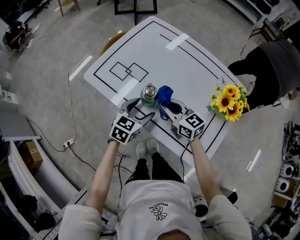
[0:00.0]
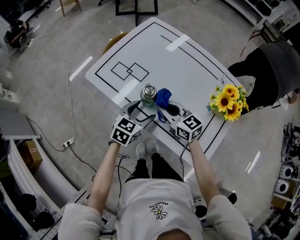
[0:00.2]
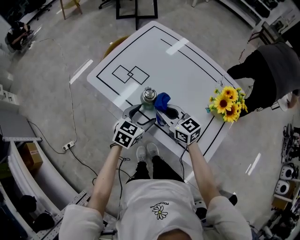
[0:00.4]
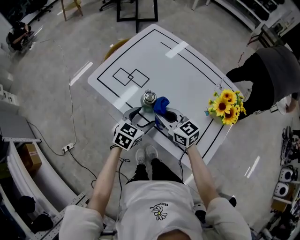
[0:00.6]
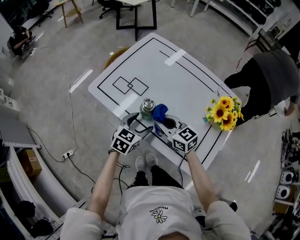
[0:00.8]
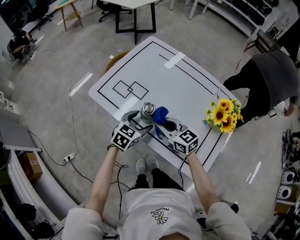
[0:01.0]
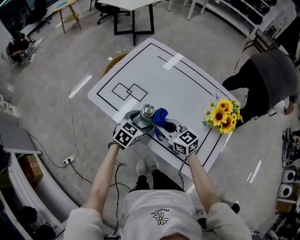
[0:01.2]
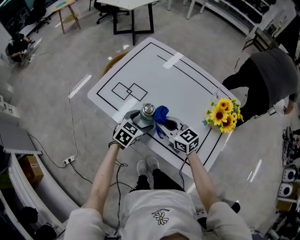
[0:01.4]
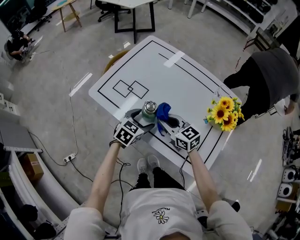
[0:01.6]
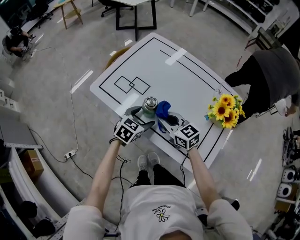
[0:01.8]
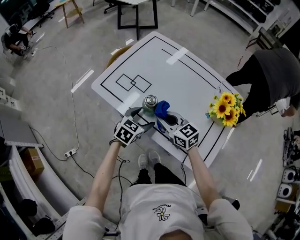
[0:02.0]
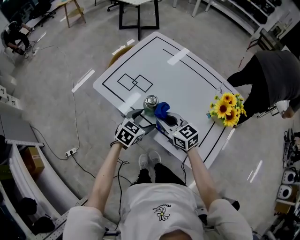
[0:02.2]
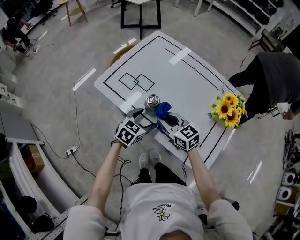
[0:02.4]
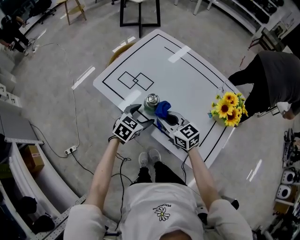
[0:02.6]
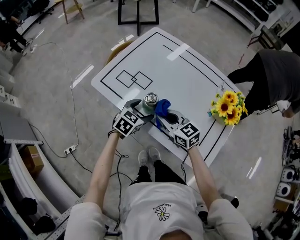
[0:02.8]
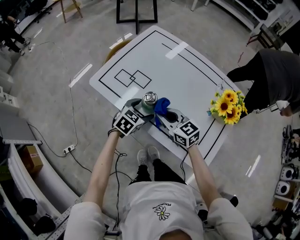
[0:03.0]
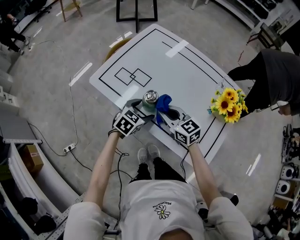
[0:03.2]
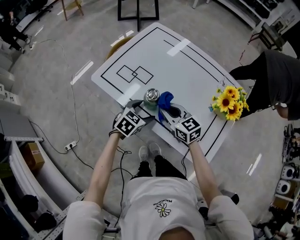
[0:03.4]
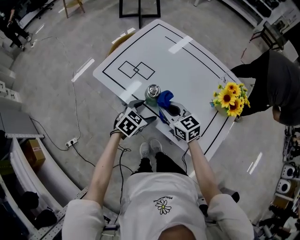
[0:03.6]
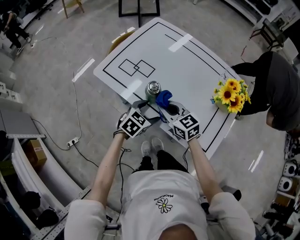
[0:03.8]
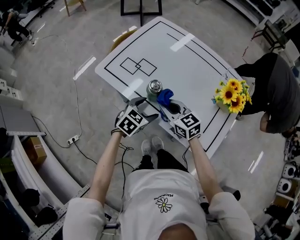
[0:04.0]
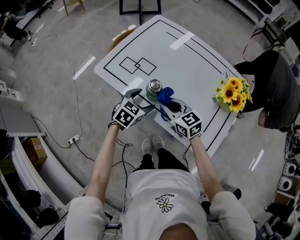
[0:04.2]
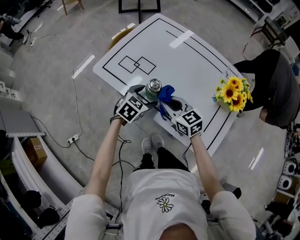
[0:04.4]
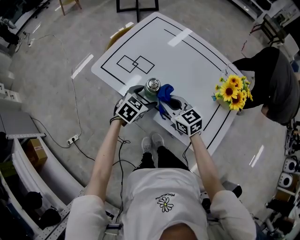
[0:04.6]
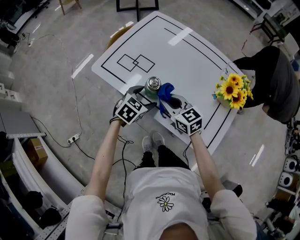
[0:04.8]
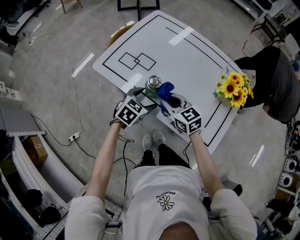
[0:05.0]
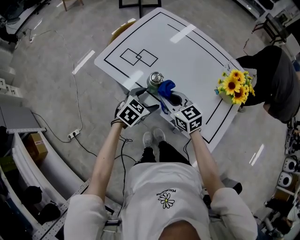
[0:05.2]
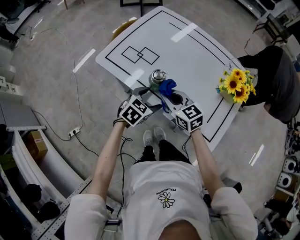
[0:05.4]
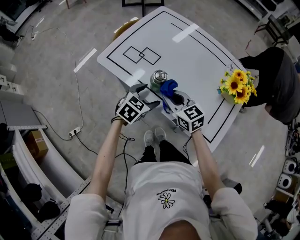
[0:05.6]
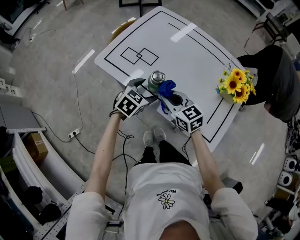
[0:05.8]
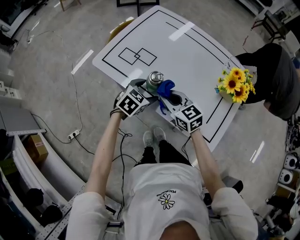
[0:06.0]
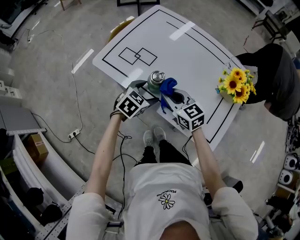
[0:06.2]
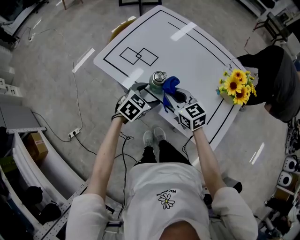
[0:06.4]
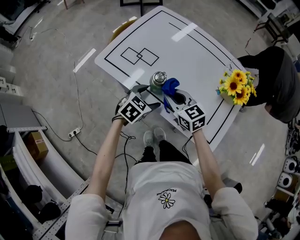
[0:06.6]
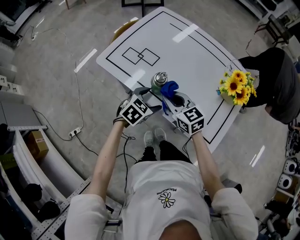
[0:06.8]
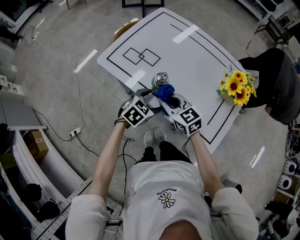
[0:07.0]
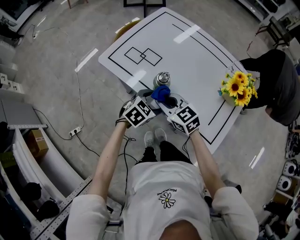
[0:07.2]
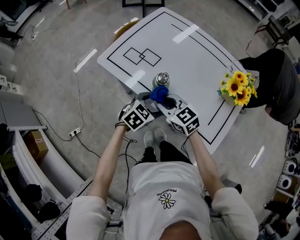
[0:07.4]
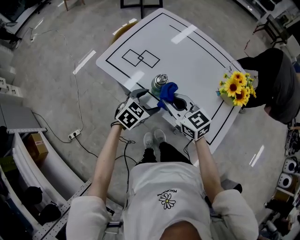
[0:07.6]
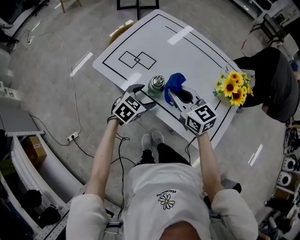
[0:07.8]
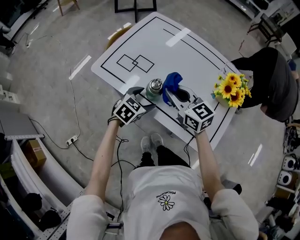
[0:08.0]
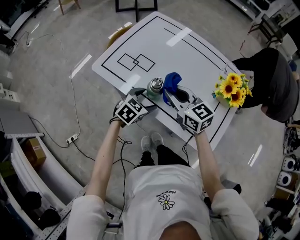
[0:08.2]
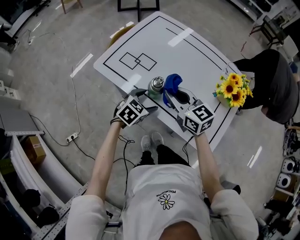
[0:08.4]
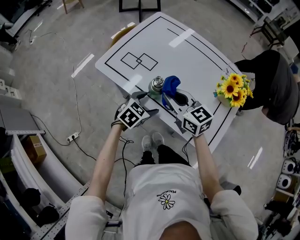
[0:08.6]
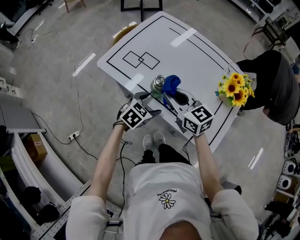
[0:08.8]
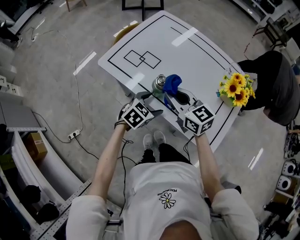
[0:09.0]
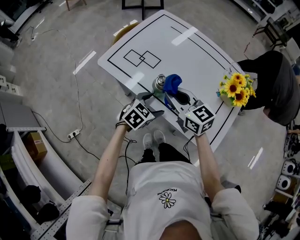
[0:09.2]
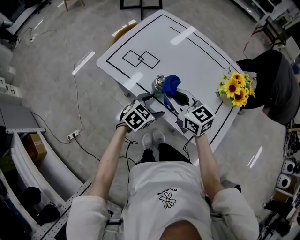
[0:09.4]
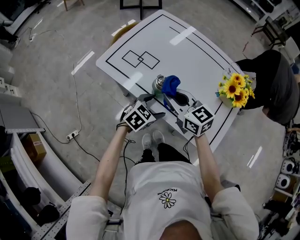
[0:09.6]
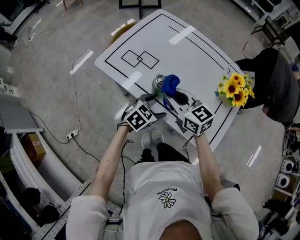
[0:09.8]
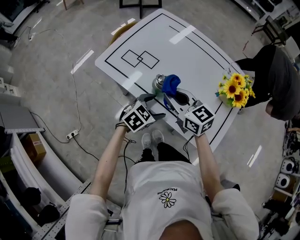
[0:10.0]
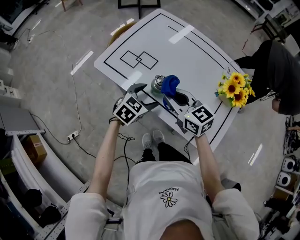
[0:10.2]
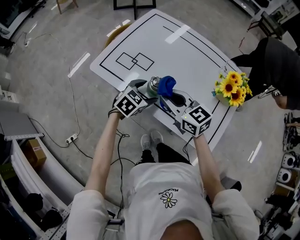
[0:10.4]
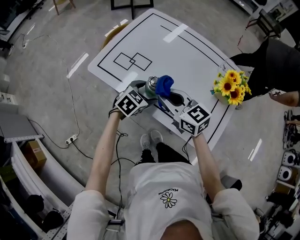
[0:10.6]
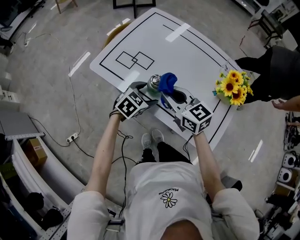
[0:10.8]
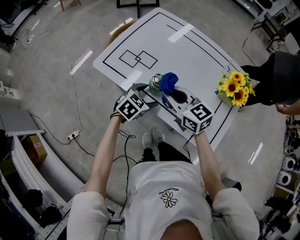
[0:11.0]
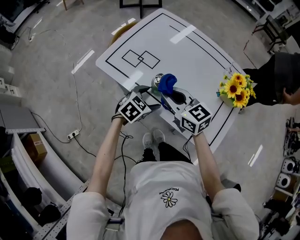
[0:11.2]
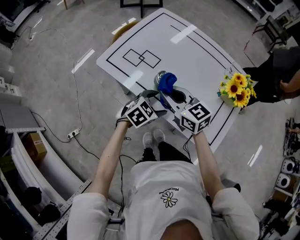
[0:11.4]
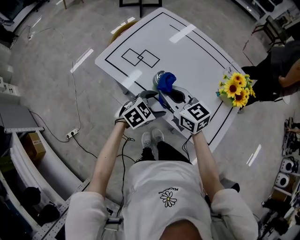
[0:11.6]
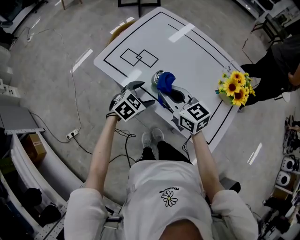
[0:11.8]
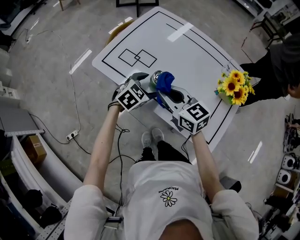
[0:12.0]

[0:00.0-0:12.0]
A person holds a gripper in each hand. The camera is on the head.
0:00.0 to 0:03.0: There are only small adjustments of the grippers.
0:04.4 to 0:06.0: The grippers move only a little.
0:06.0 to 0:07.6: The right gripper moves upward, some 5 cm.
0:09.0 to 0:10.4: The left gripper is displaced forward by some 5 cm.
0:10.4 to 0:12.0: The left gripper goes backward and returns, roughly 5 cm each way.

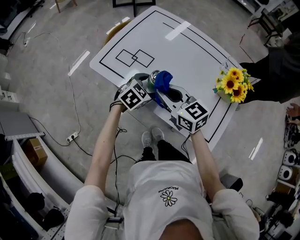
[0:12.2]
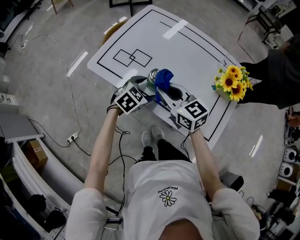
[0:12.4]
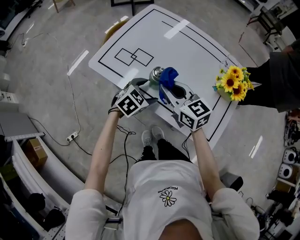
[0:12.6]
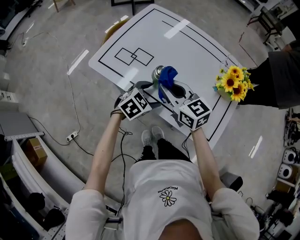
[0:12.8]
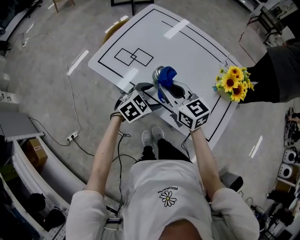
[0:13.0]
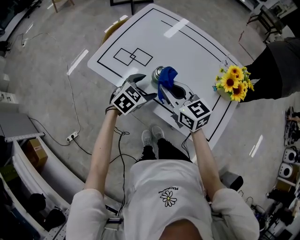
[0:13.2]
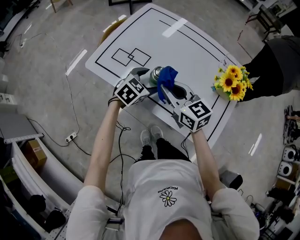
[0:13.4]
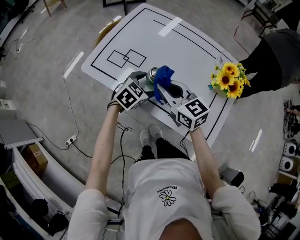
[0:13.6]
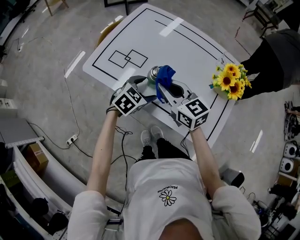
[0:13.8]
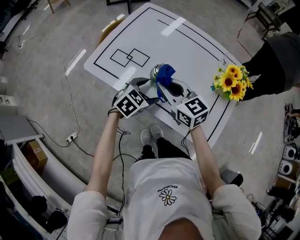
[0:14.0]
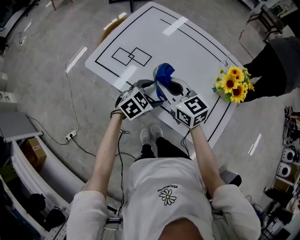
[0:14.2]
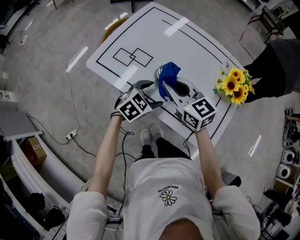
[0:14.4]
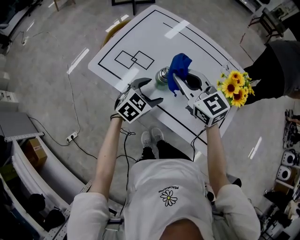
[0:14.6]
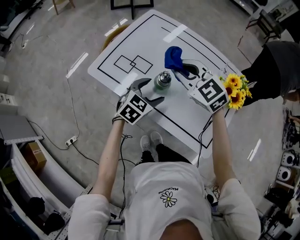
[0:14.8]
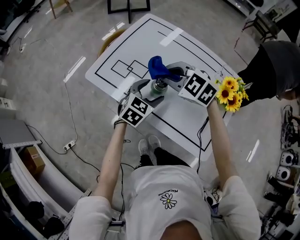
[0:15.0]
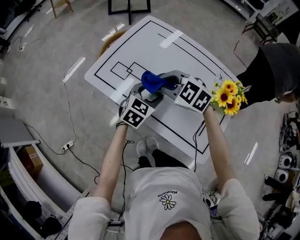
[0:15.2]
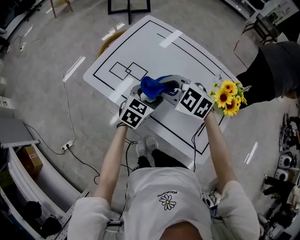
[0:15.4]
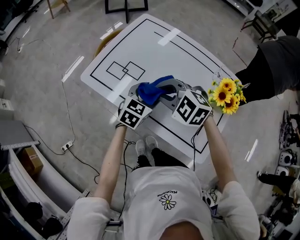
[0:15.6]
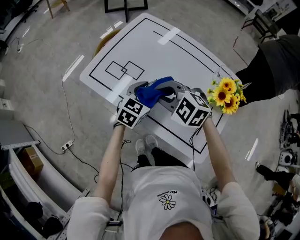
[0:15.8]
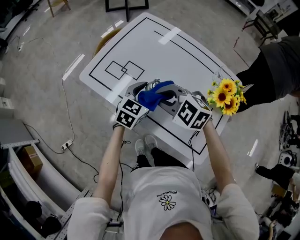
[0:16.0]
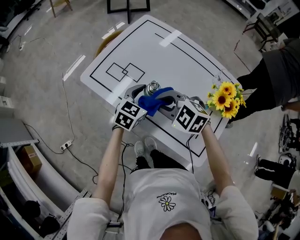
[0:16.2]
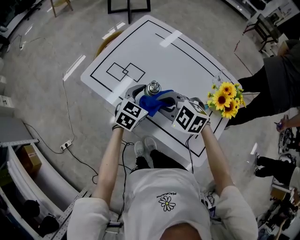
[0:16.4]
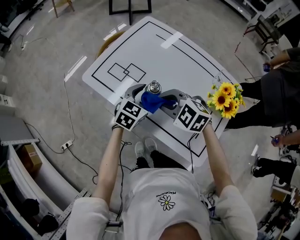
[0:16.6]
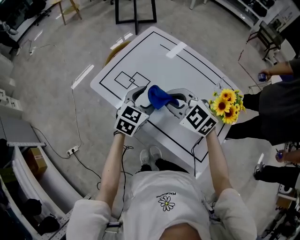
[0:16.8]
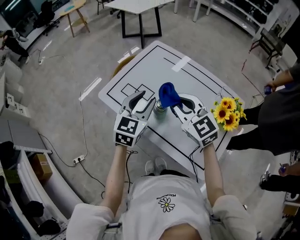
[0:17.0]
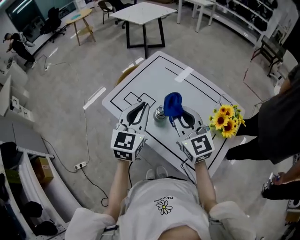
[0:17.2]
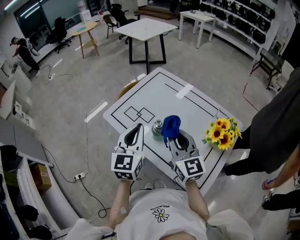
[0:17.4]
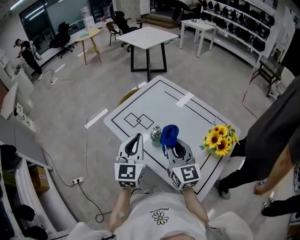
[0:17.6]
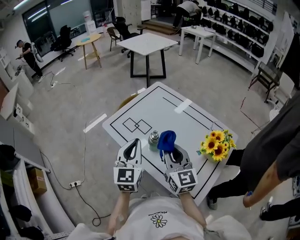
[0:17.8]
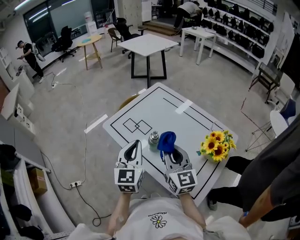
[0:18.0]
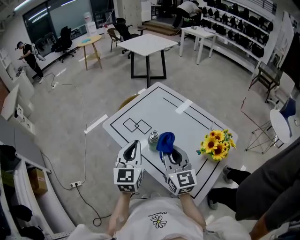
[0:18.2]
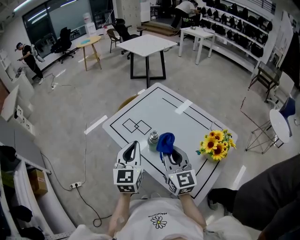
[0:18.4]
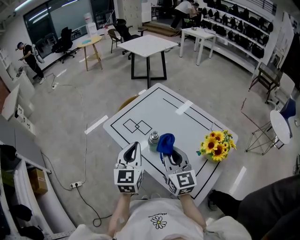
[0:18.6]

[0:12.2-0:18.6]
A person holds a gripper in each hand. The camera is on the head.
0:12.2 to 0:13.8: The grippers move only a little.
0:13.8 to 0:15.4: The left gripper moves some 5 cm, and turns by about 20 degrees; the right gripper swivels roughly 50 degrees.
0:15.4 to 0:17.0: The right gripper shifts roughly 10 cm upward, and changes its angle by some 30 degrees; the left gripper heads upward, covering some 15 cm, changes its angle by about 20 degrees, and closes its fingers.
0:17.0 to 0:18.6: The grippers both shift backward by about 10 cm. The right gripper swivels some 30 degrees. The left gripper swivels some 20 degrees, and closes its fingers.

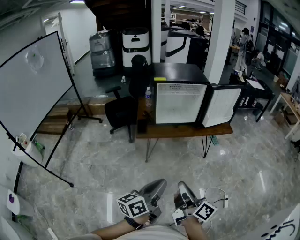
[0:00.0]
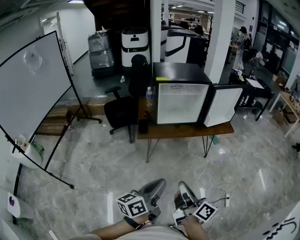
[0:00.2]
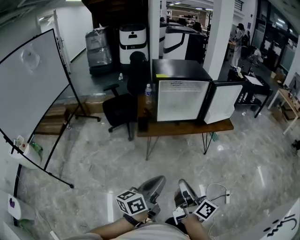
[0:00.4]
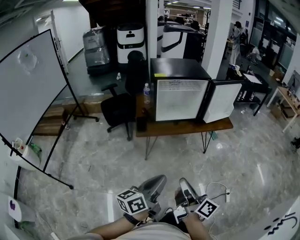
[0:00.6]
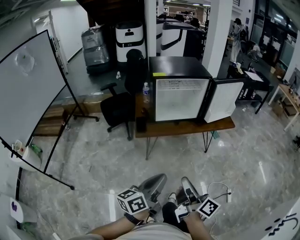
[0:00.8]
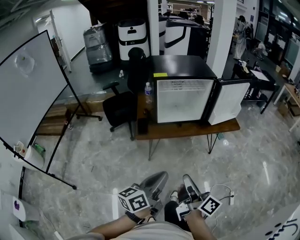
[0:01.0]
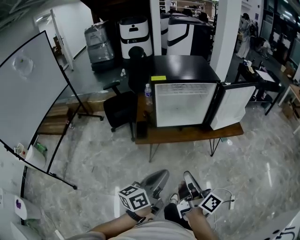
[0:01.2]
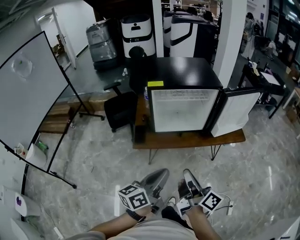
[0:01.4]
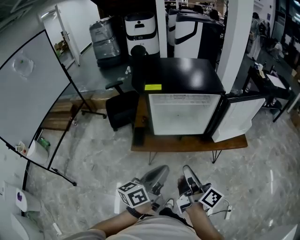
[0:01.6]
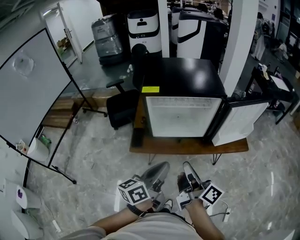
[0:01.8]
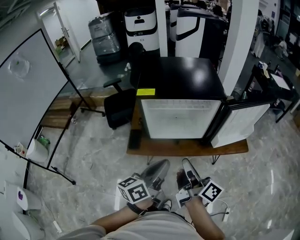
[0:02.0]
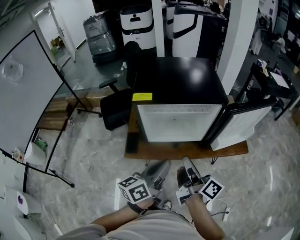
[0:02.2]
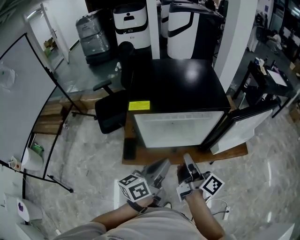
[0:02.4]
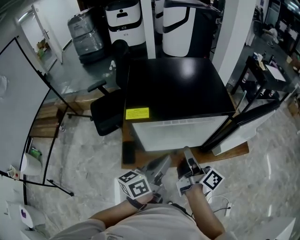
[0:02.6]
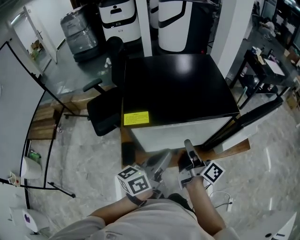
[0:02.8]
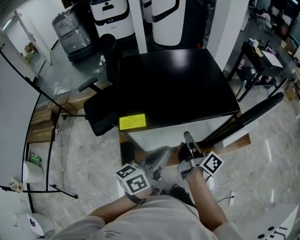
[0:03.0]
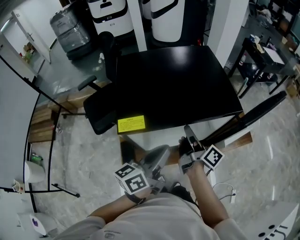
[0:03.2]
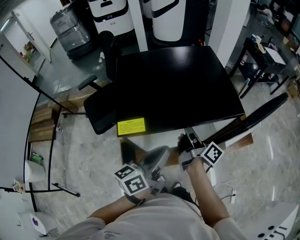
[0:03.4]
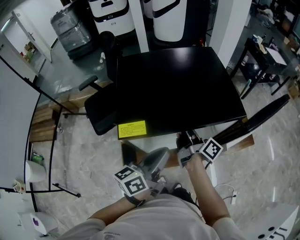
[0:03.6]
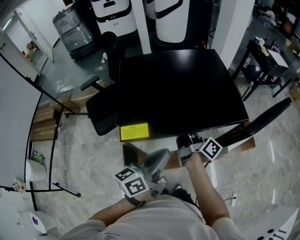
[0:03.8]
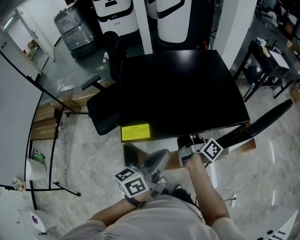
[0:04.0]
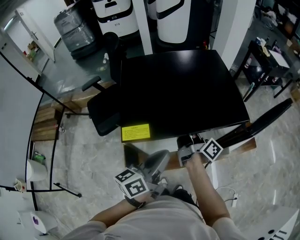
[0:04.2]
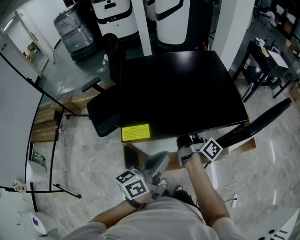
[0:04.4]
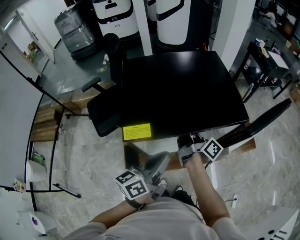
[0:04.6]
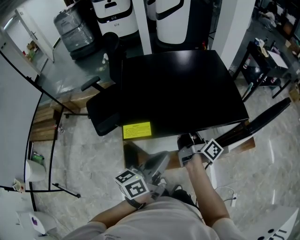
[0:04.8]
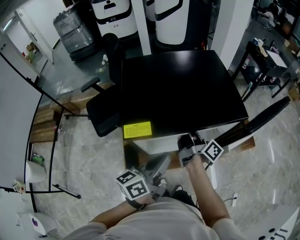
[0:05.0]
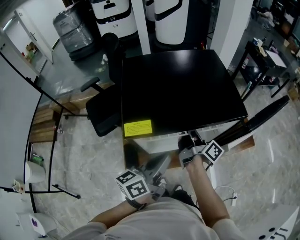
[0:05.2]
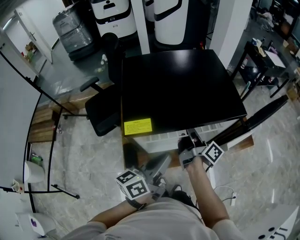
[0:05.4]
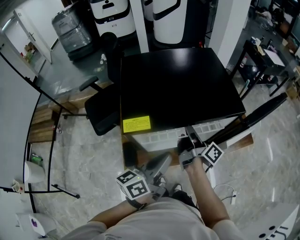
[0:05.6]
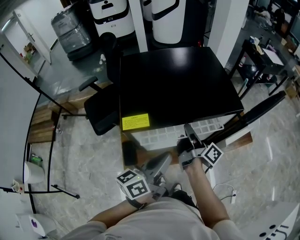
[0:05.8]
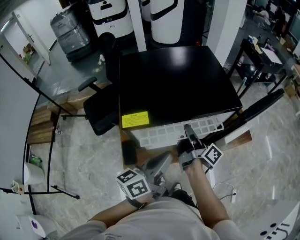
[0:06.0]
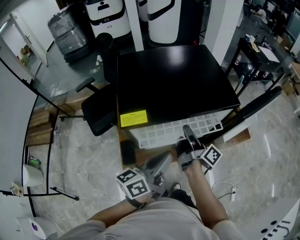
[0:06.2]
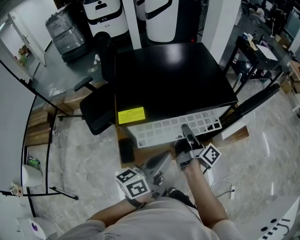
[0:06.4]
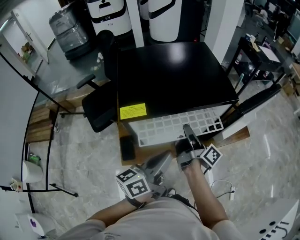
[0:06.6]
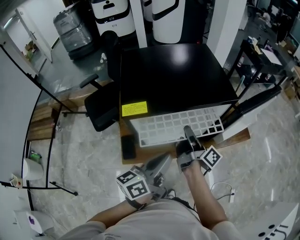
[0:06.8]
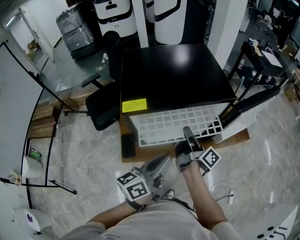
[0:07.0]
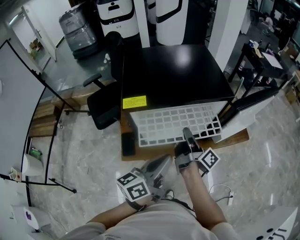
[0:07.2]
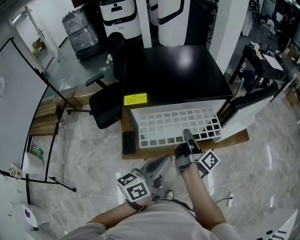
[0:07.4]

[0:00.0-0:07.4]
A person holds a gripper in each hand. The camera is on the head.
0:00.0 to 0:01.4: The left gripper changes place by roughly 25 cm.
0:01.4 to 0:03.0: The left gripper moves approximately 35 cm.
0:06.0 to 0:07.4: The left gripper moves roughly 10 cm.
